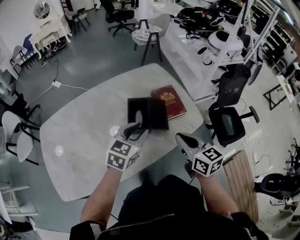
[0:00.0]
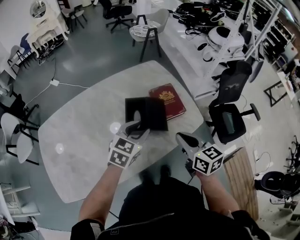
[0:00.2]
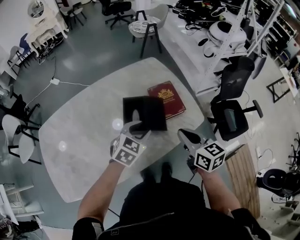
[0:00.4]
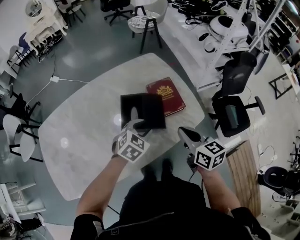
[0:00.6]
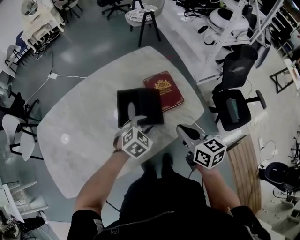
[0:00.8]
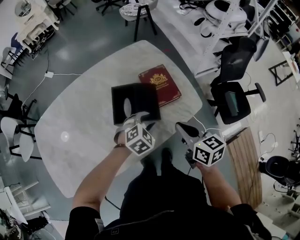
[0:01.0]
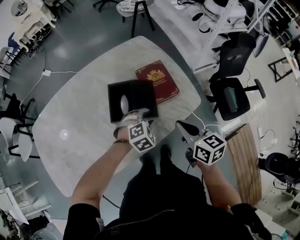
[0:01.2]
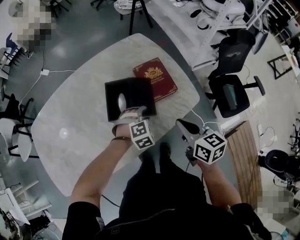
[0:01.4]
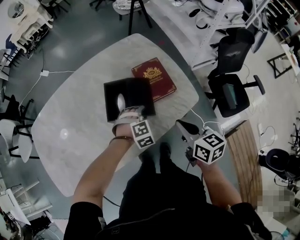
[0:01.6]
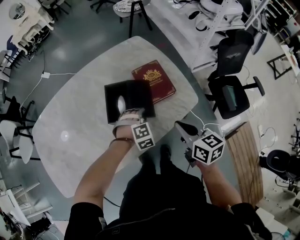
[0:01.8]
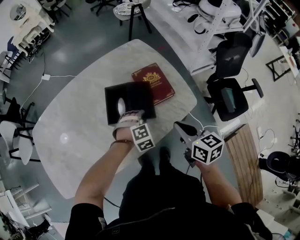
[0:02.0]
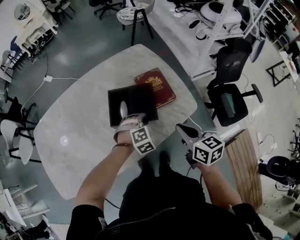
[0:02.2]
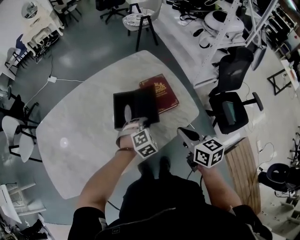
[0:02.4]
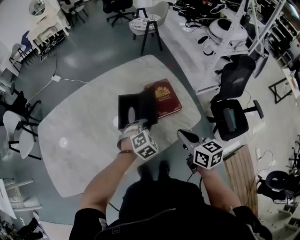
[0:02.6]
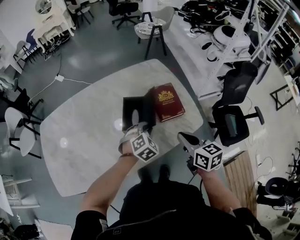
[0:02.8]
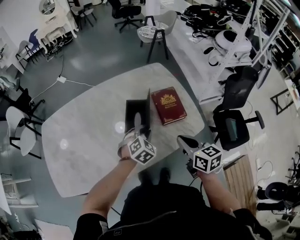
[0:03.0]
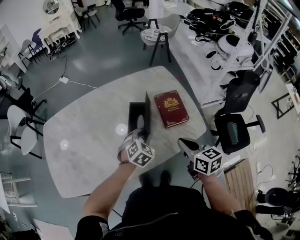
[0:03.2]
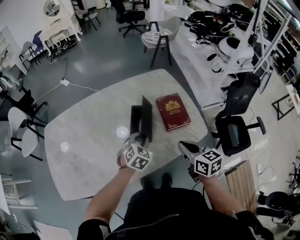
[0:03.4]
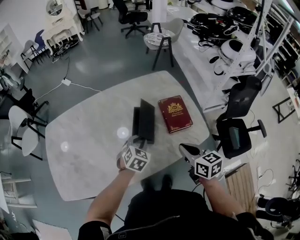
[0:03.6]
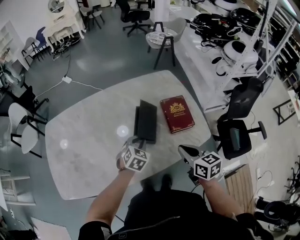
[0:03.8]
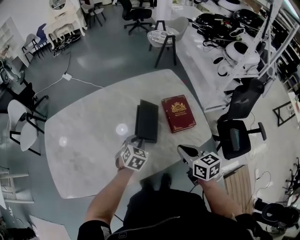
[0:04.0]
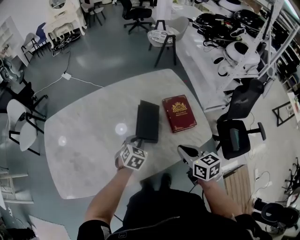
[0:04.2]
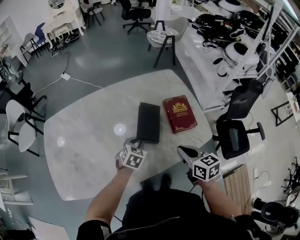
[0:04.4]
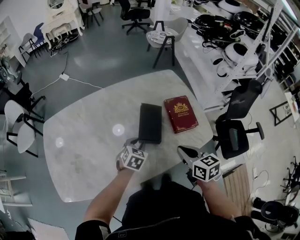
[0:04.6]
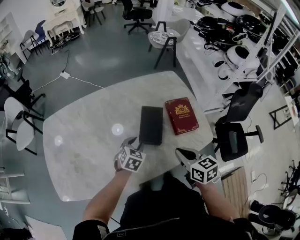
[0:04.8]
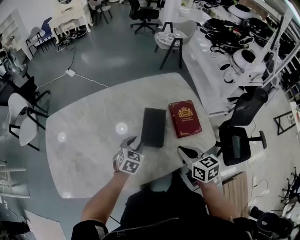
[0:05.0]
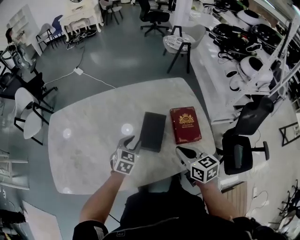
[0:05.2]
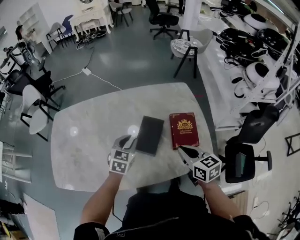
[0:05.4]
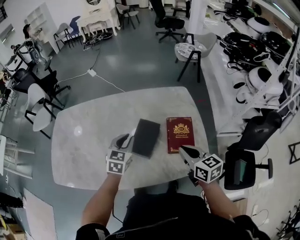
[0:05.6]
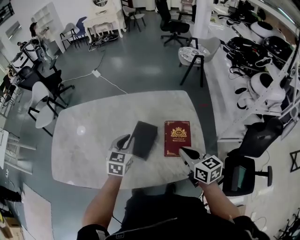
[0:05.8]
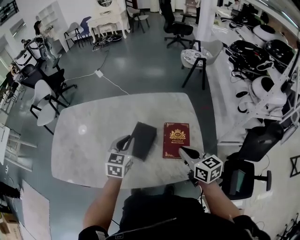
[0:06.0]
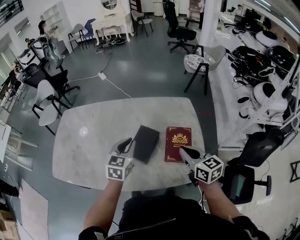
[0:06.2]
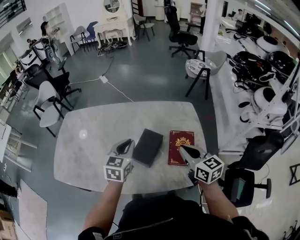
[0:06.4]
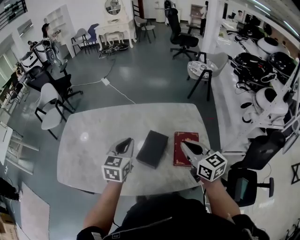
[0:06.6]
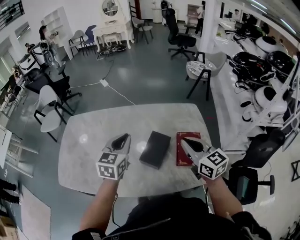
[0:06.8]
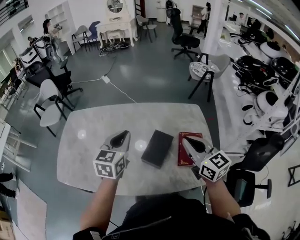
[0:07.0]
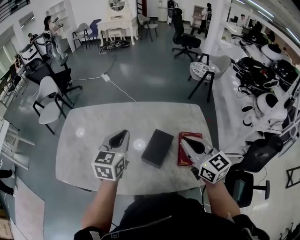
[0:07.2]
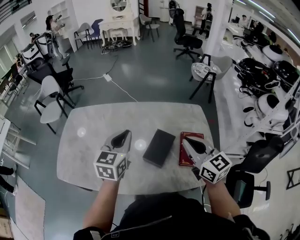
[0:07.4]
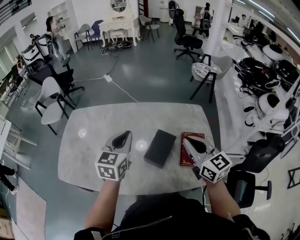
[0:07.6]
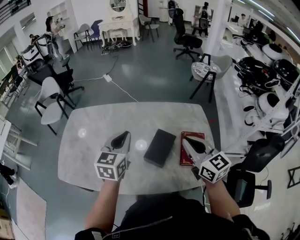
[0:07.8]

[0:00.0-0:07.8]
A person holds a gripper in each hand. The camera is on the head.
0:00.0 to 0:01.6: The left gripper travels downward and to the right by approximately 25 cm, and rotates around the line of its fingers by approximately 60 degrees, clockwise from behind. The right gripper travels downward, to the right and forward by some 15 cm.
0:01.6 to 0:03.2: The right gripper travels to the left and upward by approximately 10 cm. The left gripper moves upward and to the left, approximately 15 cm, swivels roughly 40 degrees, and closes.
0:03.2 to 0:04.6: The left gripper goes approximately 10 cm to the left and downward. The right gripper moves to the left, some 5 cm.
0:04.6 to 0:06.2: The left gripper shifts about 20 cm upward and to the right, and turns by roughly 40 degrees. The right gripper goes approximately 20 cm to the right and forward, and turns by roughly 30 degrees.
0:06.2 to 0:07.8: Both grippers move to the left and upward, approximately 15 cm.

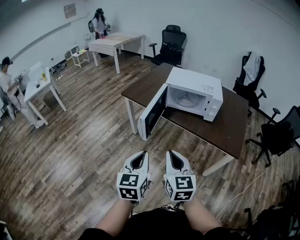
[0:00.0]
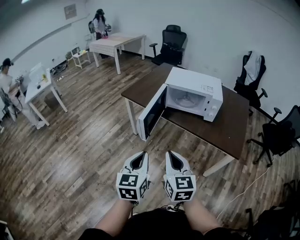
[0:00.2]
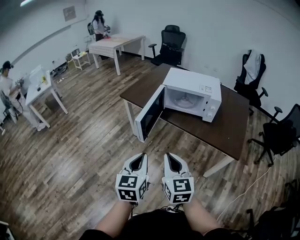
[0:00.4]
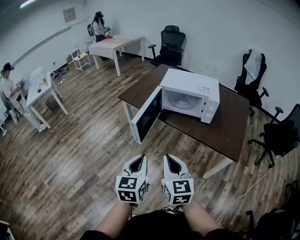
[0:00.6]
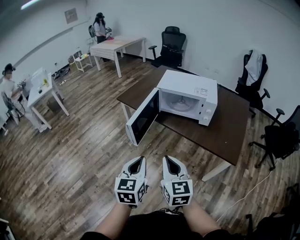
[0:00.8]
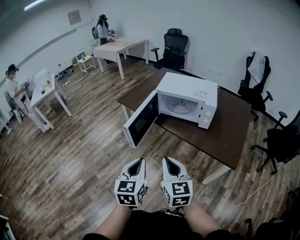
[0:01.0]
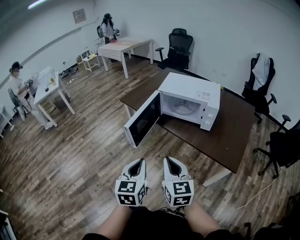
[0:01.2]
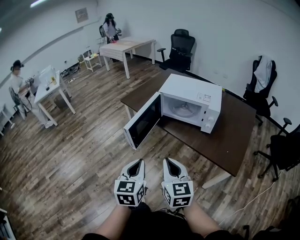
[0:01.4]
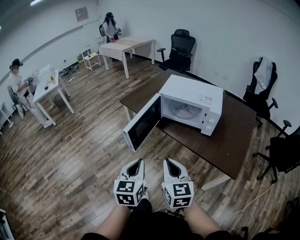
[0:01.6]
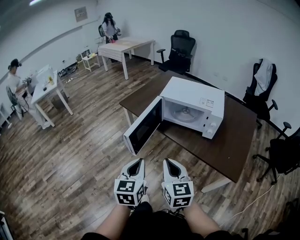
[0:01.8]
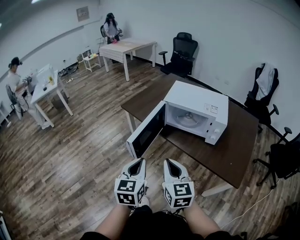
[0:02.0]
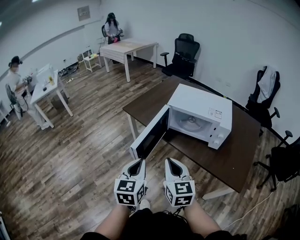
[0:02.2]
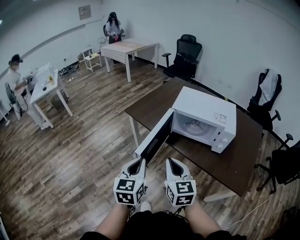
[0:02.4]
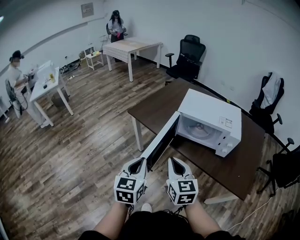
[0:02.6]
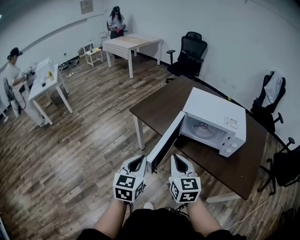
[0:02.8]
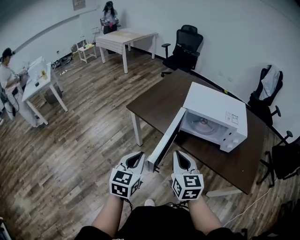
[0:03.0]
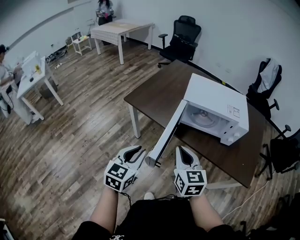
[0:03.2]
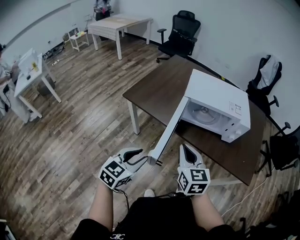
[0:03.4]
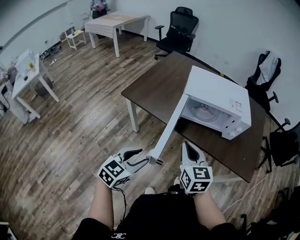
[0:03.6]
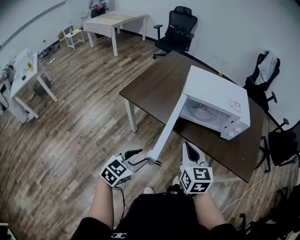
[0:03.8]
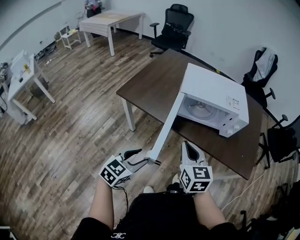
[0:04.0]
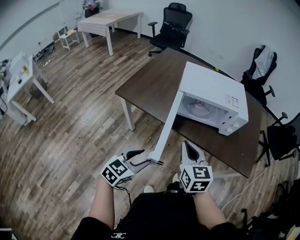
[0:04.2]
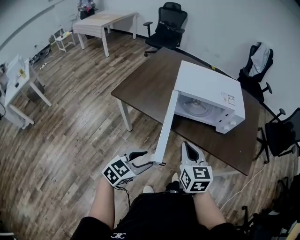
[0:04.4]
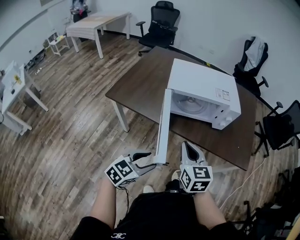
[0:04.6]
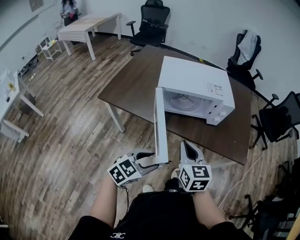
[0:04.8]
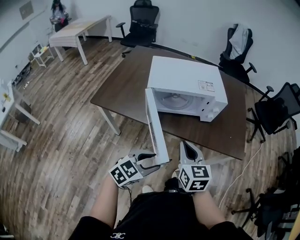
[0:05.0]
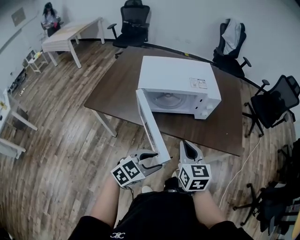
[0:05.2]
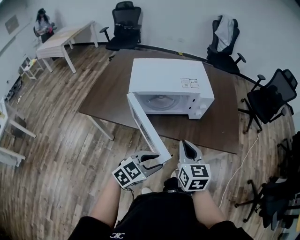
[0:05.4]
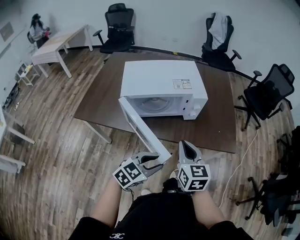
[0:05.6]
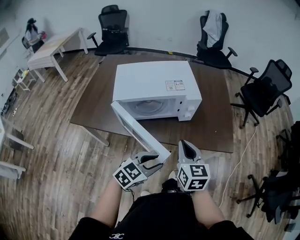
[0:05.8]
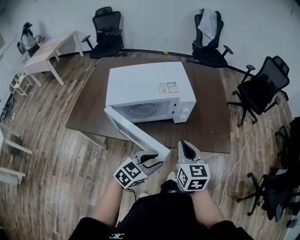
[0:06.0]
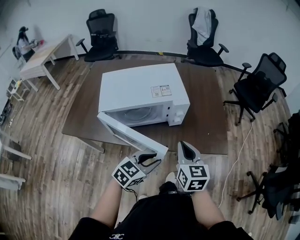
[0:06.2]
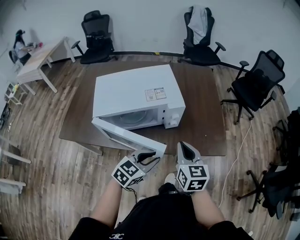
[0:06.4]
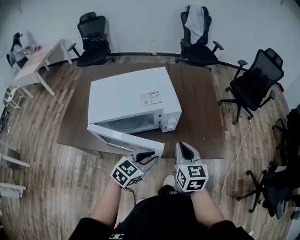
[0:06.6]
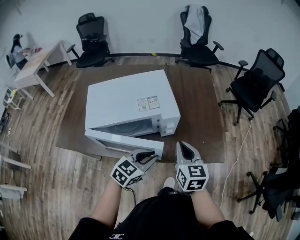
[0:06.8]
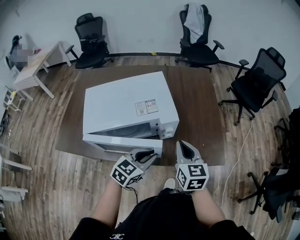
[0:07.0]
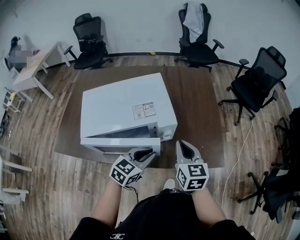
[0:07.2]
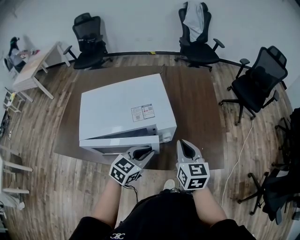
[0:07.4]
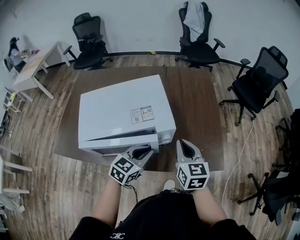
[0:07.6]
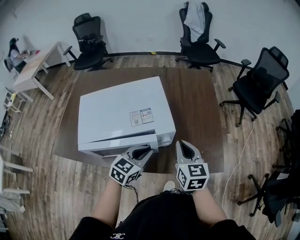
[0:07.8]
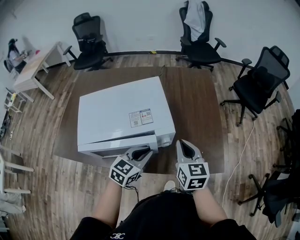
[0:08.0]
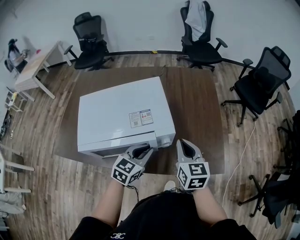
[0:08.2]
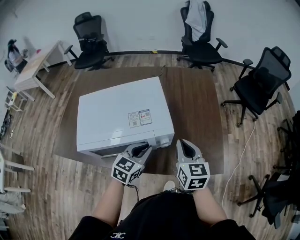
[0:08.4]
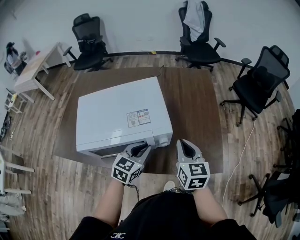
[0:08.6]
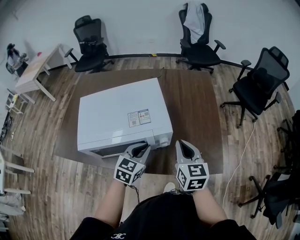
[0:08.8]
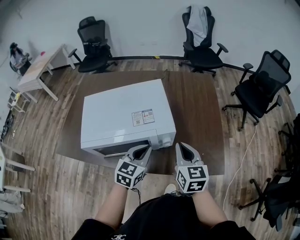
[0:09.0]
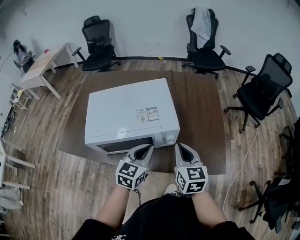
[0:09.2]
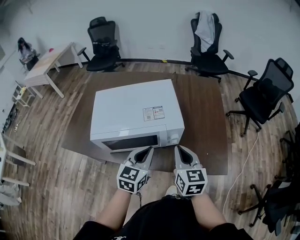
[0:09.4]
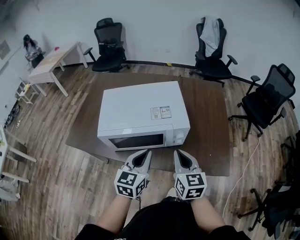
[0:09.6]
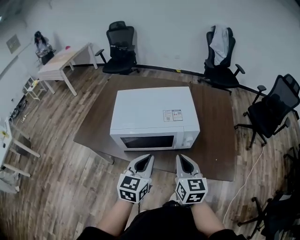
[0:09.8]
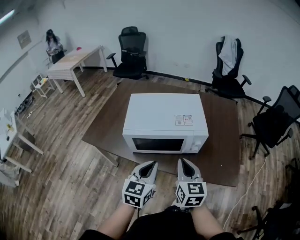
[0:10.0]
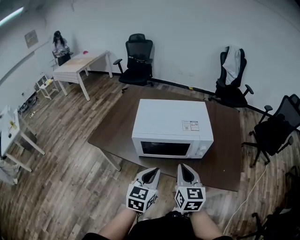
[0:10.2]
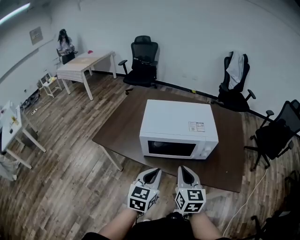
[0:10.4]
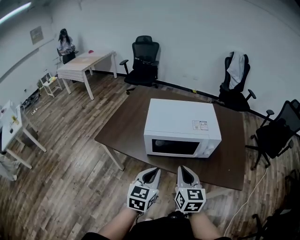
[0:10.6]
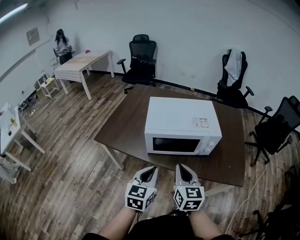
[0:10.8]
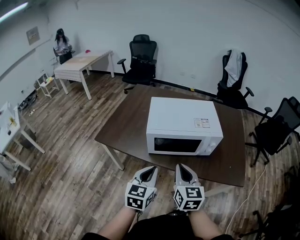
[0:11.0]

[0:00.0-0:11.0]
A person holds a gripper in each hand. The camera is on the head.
0:00.0 to 0:01.6: Both grippers move to the right and forward, about 10 cm.
0:01.6 to 0:03.2: The grippers both shift forward and to the left by approximately 25 cm. The left gripper changes its angle by roughly 20 degrees.
0:03.2 to 0:04.8: The right gripper changes place by approximately 10 cm. The left gripper changes place by roughly 15 cm, turns by roughly 50 degrees, and opens its fingers.
0:04.8 to 0:06.2: The right gripper travels to the right and forward by some 20 cm, while the left gripper goes approximately 20 cm forward and to the right, and closes.
0:06.2 to 0:07.8: Both grippers move forward, roughly 20 cm.
0:07.8 to 0:09.4: The left gripper heads upward, covering approximately 5 cm, and changes its angle by approximately 20 degrees, while the right gripper moves backward, about 5 cm.
0:09.4 to 0:11.0: Both grippers move to the left and backward, roughly 25 cm.

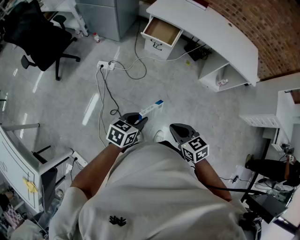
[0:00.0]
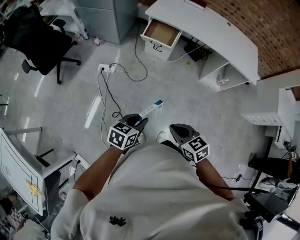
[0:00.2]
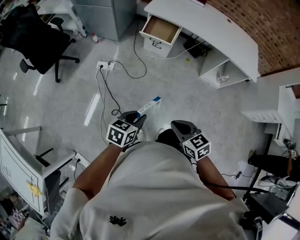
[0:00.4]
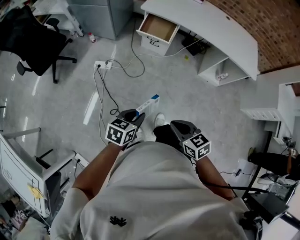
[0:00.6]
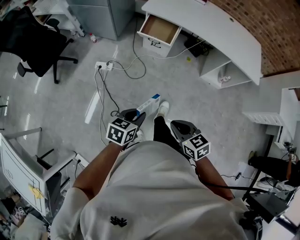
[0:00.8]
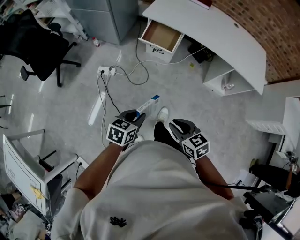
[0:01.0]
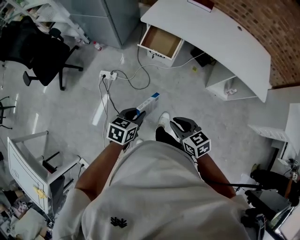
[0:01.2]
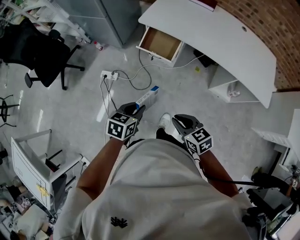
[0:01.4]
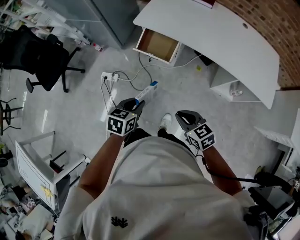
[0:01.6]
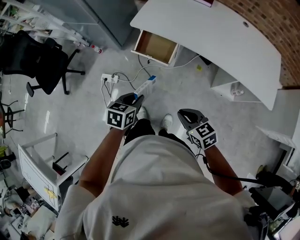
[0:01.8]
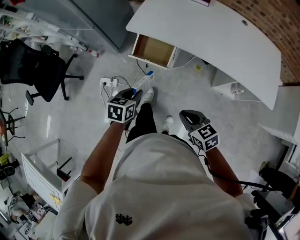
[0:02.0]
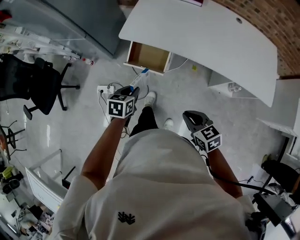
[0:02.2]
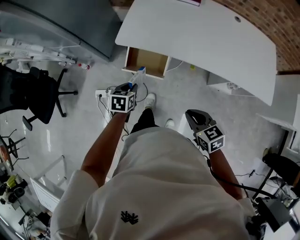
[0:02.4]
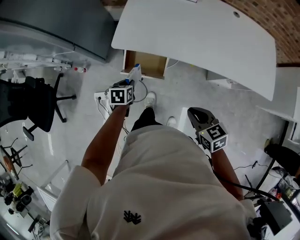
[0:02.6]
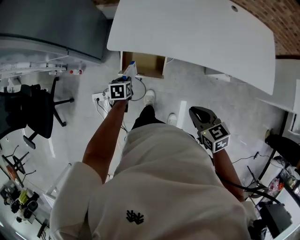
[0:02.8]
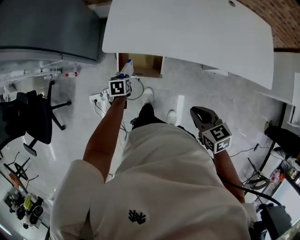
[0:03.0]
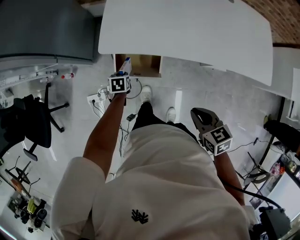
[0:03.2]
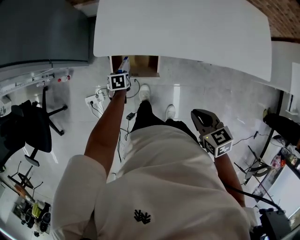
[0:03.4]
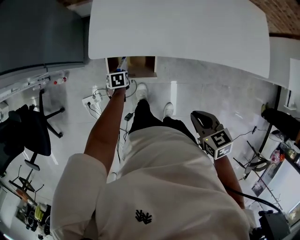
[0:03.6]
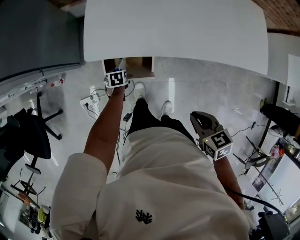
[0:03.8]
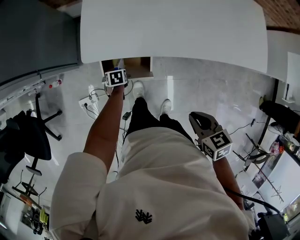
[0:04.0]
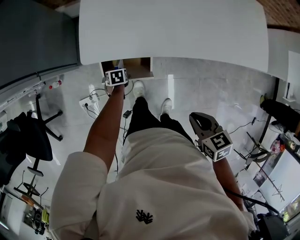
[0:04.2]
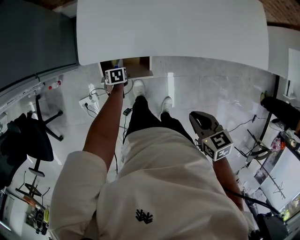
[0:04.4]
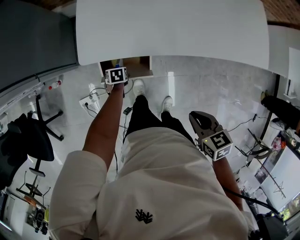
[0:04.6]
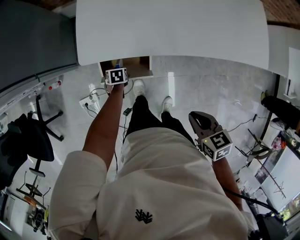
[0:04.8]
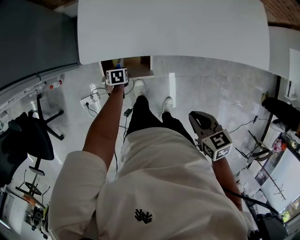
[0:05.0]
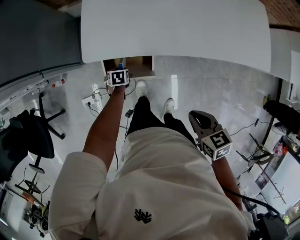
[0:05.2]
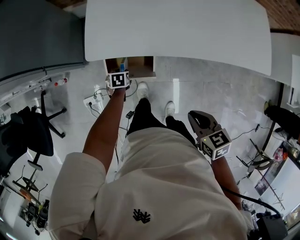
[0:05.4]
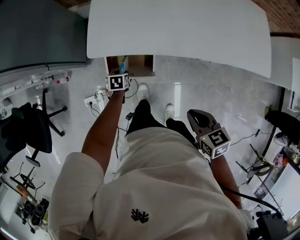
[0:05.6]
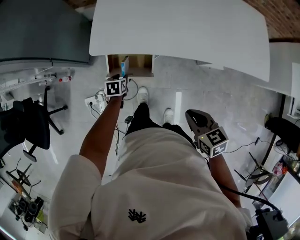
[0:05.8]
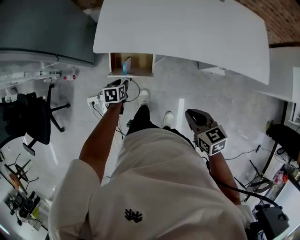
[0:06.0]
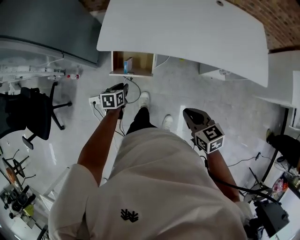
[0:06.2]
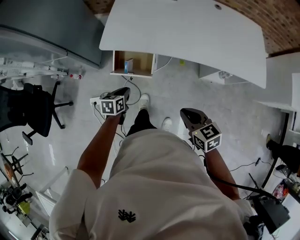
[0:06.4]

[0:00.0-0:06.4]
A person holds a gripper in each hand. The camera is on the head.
0:00.0 to 0:01.6: The pair of grippers is taken forward and to the right, about 40 cm.
0:01.6 to 0:03.2: The left gripper shifts approximately 50 cm forward and downward, and changes its angle by roughly 20 degrees. Meanwhile the right gripper heads forward, covering some 30 cm, and changes its angle by roughly 30 degrees.
0:03.2 to 0:04.8: The left gripper travels downward and forward by about 10 cm.
0:04.8 to 0:06.4: The right gripper shifts by some 15 cm, and turns by approximately 20 degrees, while the left gripper moves upward, roughly 25 cm, and swivels approximately 30 degrees.
